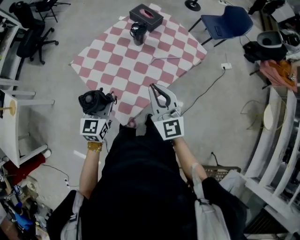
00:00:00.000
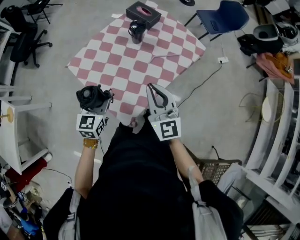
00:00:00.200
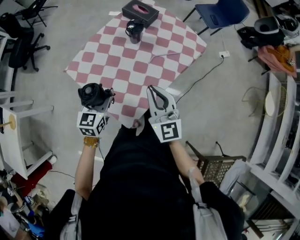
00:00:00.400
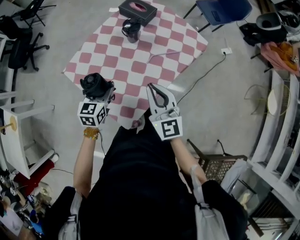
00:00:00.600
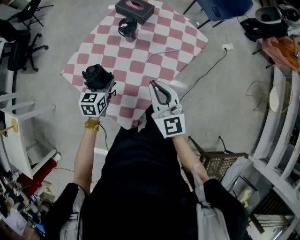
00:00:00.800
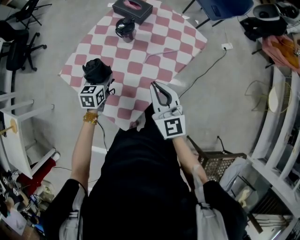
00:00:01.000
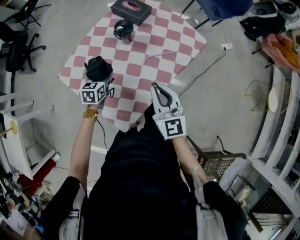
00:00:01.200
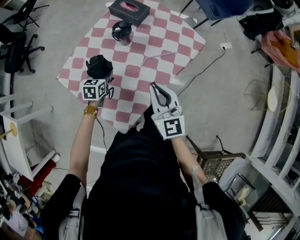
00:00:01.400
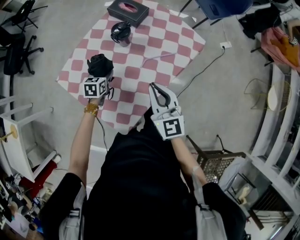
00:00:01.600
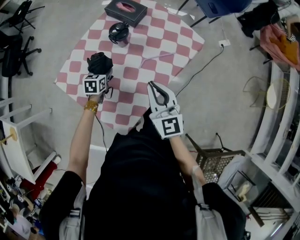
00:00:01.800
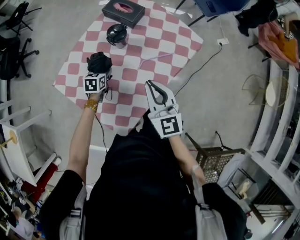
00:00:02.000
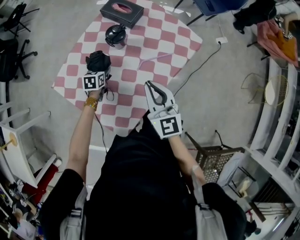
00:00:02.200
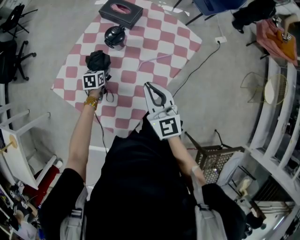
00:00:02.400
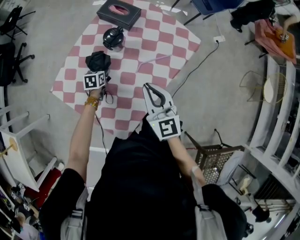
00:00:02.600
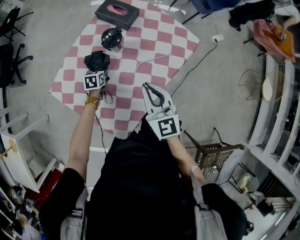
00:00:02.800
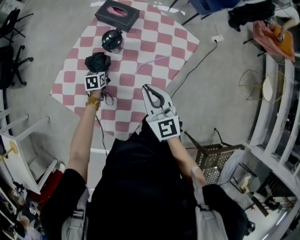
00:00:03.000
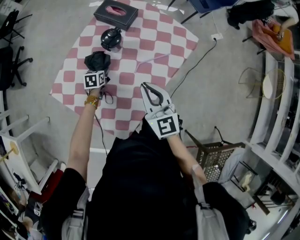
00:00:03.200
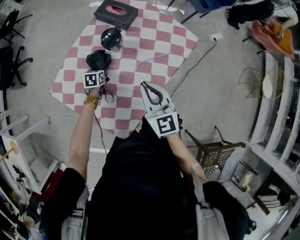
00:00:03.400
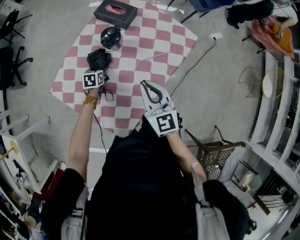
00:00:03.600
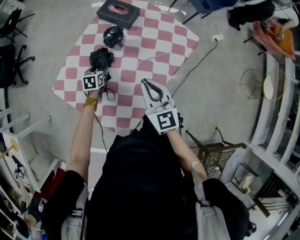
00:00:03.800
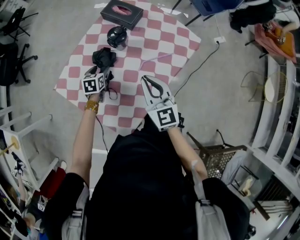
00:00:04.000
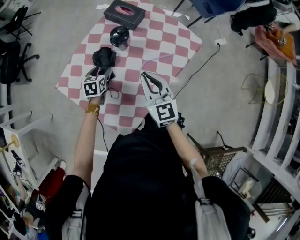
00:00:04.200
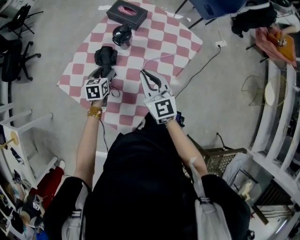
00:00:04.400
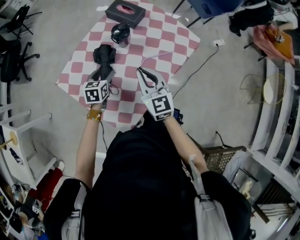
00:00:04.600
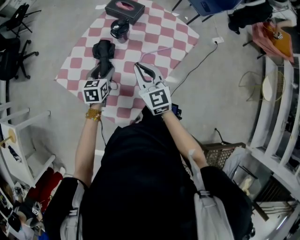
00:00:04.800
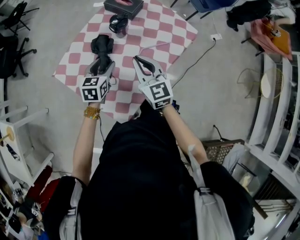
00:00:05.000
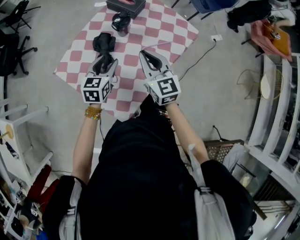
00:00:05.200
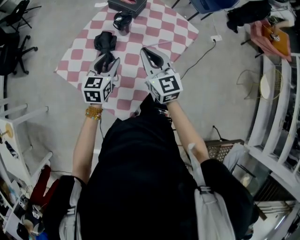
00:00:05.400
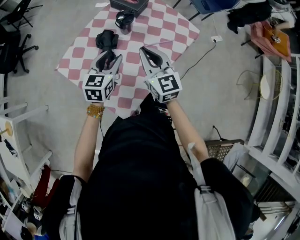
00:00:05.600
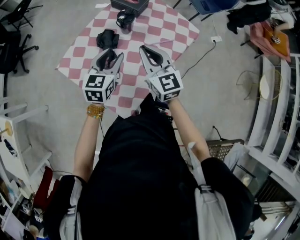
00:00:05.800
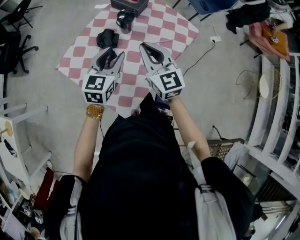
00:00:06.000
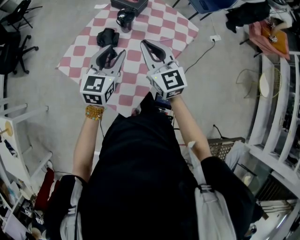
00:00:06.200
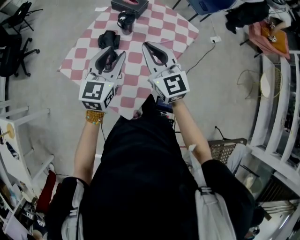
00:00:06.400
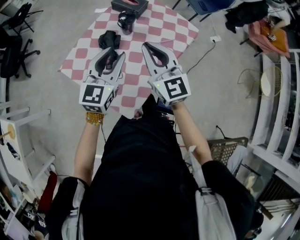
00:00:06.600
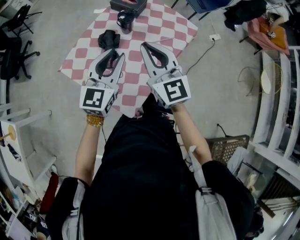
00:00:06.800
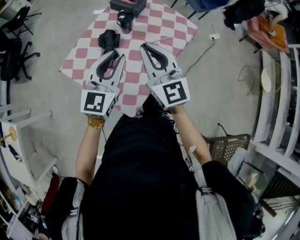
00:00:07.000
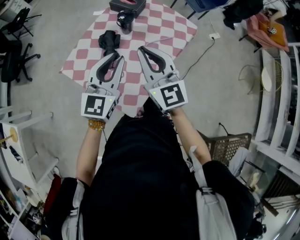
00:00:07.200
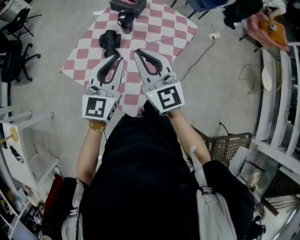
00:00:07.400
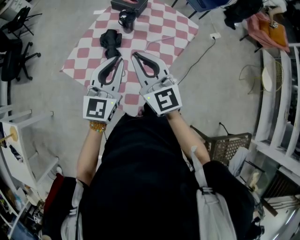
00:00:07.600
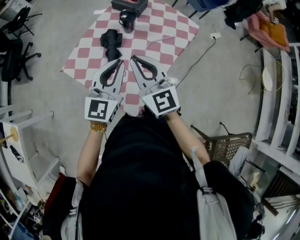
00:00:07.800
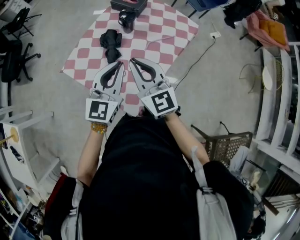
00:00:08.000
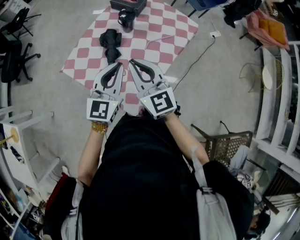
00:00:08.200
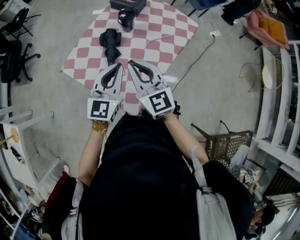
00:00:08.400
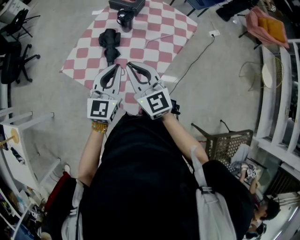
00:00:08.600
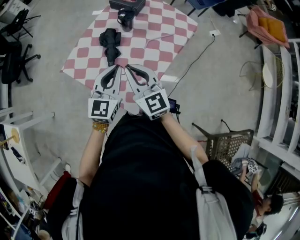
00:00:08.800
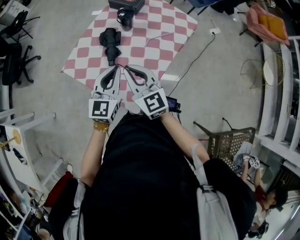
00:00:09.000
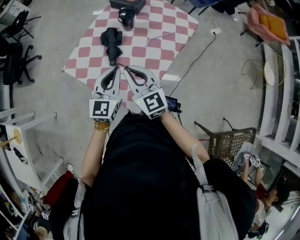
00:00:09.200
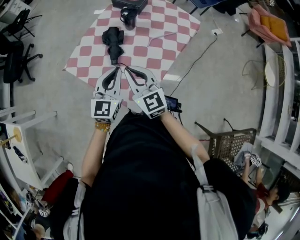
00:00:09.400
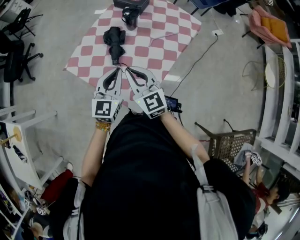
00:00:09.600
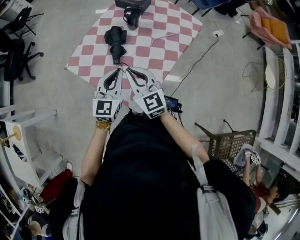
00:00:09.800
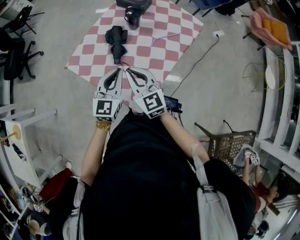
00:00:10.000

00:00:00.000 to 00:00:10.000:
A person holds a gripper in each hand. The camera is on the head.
00:00:00.000 to 00:00:01.400: The left gripper heads forward and downward, covering approximately 30 cm, and swivels approximately 30 degrees. The right gripper shifts approximately 10 cm forward and downward.
00:00:01.400 to 00:00:02.800: The left gripper travels downward and forward by approximately 15 cm. Meanwhile the right gripper goes roughly 5 cm forward.
00:00:02.800 to 00:00:04.200: The left gripper is displaced upward by about 10 cm.
00:00:04.200 to 00:00:05.800: The left gripper heads upward and backward, covering about 20 cm, and rotates roughly 30 degrees. Meanwhile the right gripper heads upward, covering approximately 5 cm.
00:00:05.800 to 00:00:07.200: The grippers both shift upward and backward by roughly 10 cm. The left gripper closes up.
00:00:07.200 to 00:00:08.600: Both grippers travel together downward, roughly 5 cm.
00:00:08.600 to 00:00:10.000: Both grippers move downward, some 5 cm.

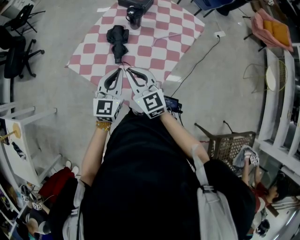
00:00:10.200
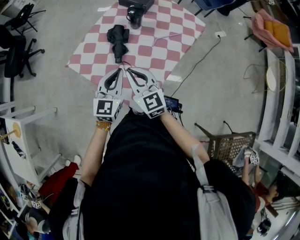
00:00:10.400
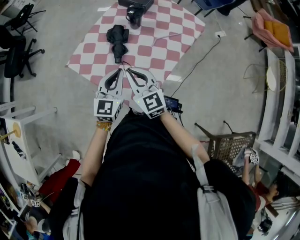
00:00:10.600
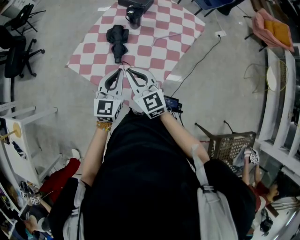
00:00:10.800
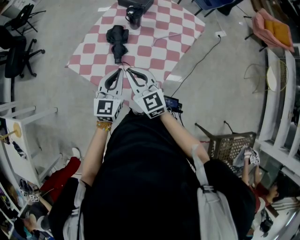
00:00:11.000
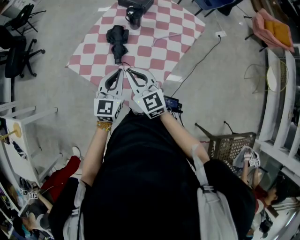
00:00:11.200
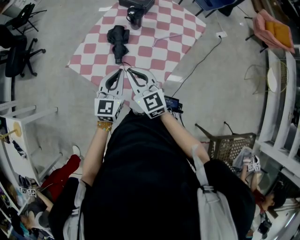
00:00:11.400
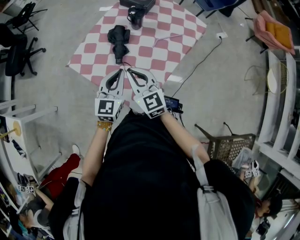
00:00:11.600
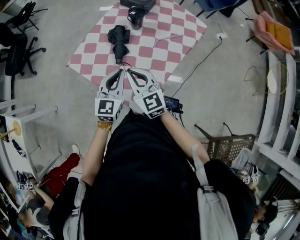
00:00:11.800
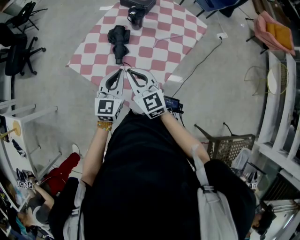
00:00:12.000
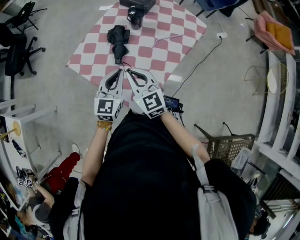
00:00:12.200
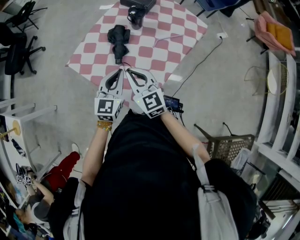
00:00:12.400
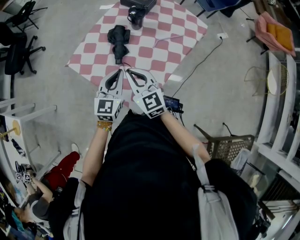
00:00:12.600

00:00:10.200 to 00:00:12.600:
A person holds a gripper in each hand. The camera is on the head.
00:00:10.200 to 00:00:11.400: Both grippers stay put.
00:00:11.400 to 00:00:12.600: The grippers stay close to where they were, moving slightly.

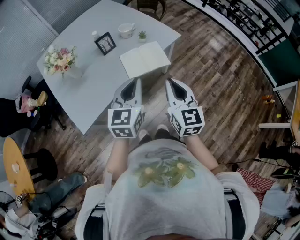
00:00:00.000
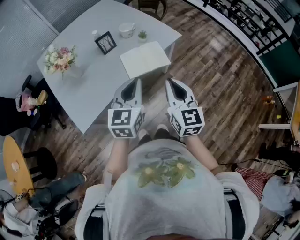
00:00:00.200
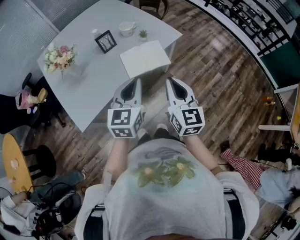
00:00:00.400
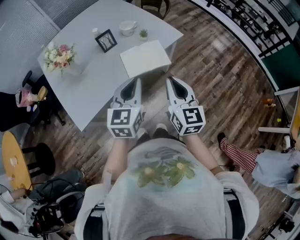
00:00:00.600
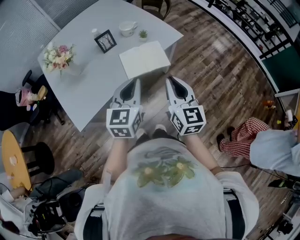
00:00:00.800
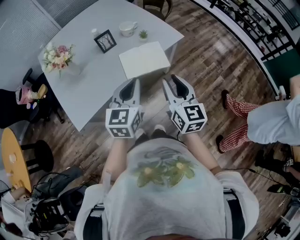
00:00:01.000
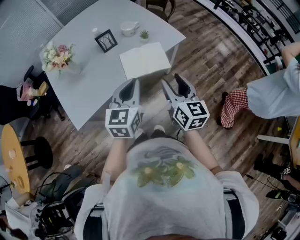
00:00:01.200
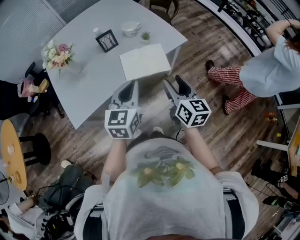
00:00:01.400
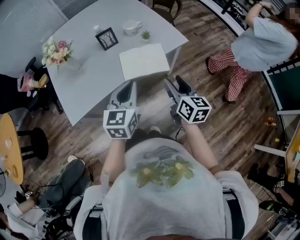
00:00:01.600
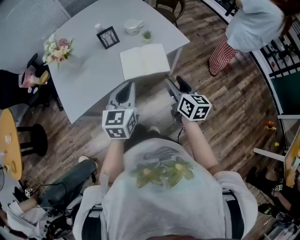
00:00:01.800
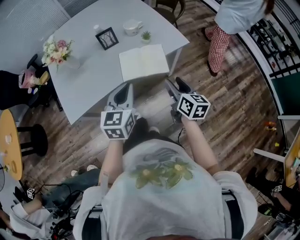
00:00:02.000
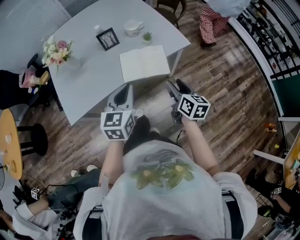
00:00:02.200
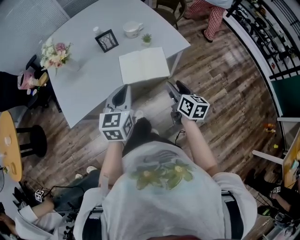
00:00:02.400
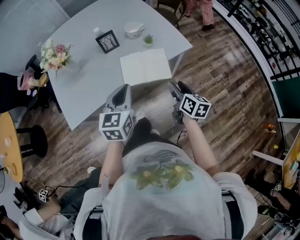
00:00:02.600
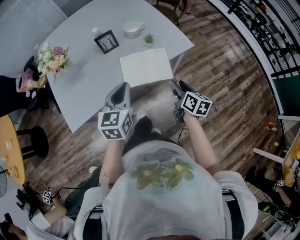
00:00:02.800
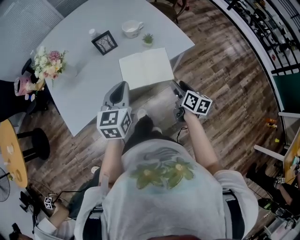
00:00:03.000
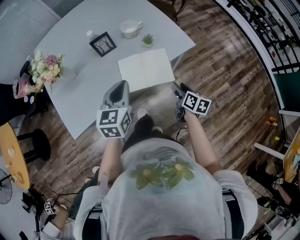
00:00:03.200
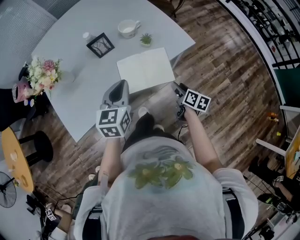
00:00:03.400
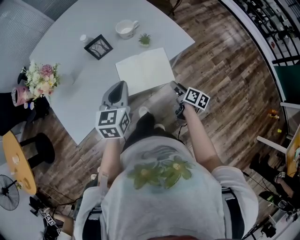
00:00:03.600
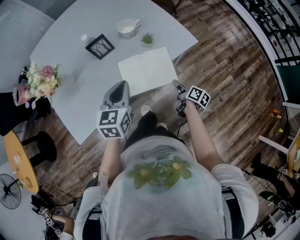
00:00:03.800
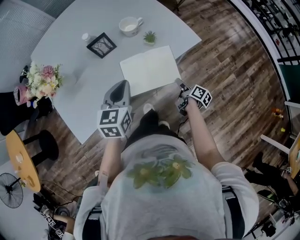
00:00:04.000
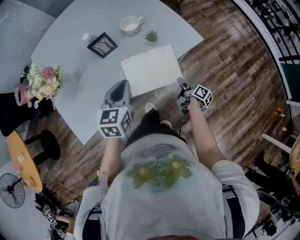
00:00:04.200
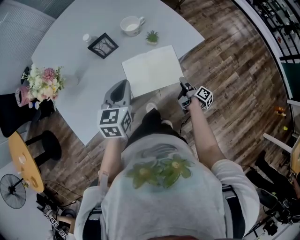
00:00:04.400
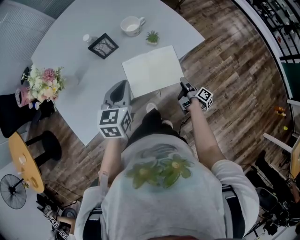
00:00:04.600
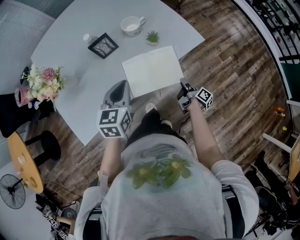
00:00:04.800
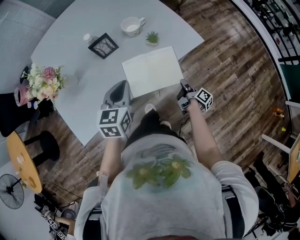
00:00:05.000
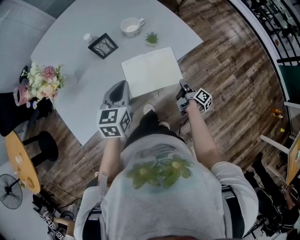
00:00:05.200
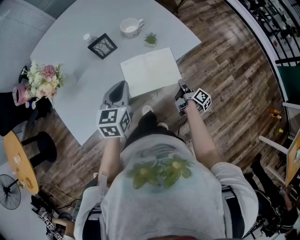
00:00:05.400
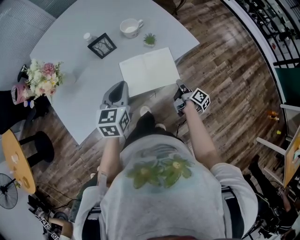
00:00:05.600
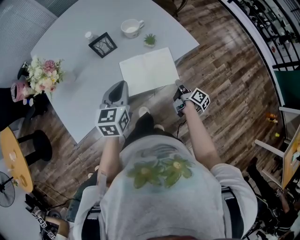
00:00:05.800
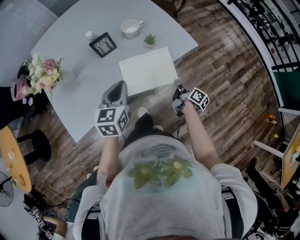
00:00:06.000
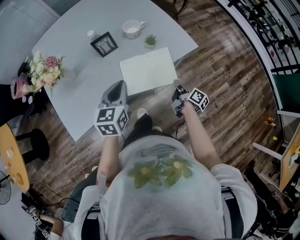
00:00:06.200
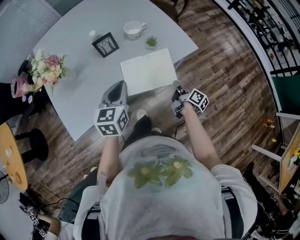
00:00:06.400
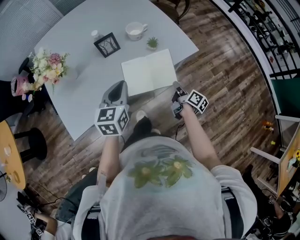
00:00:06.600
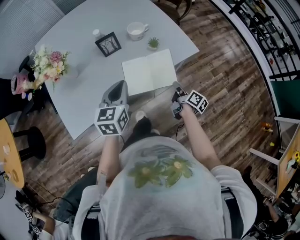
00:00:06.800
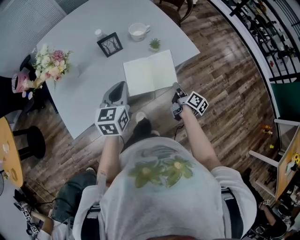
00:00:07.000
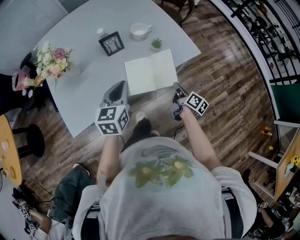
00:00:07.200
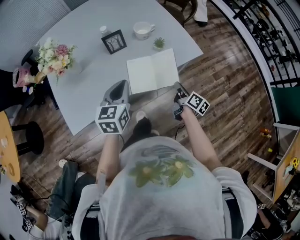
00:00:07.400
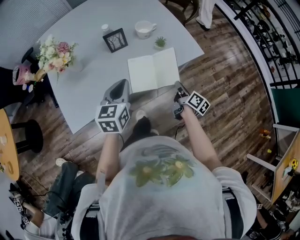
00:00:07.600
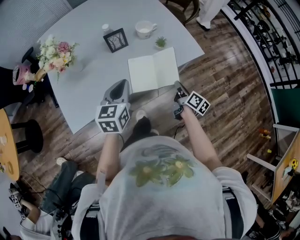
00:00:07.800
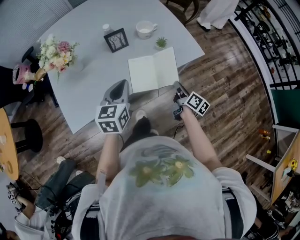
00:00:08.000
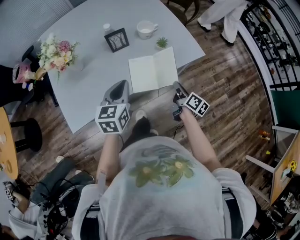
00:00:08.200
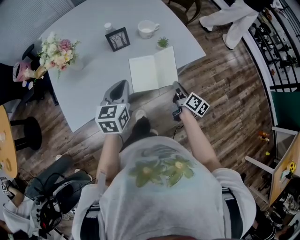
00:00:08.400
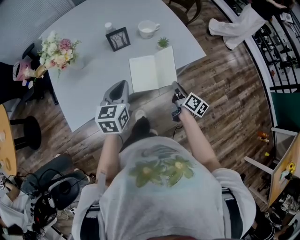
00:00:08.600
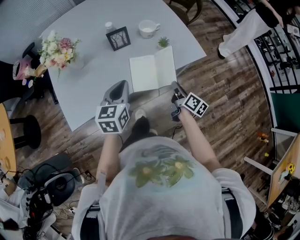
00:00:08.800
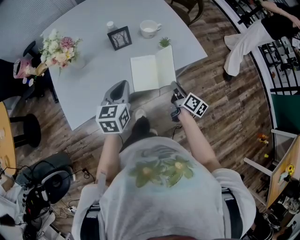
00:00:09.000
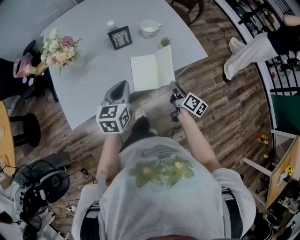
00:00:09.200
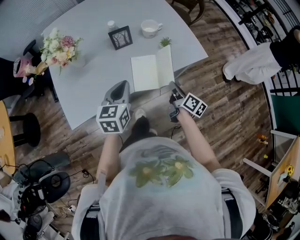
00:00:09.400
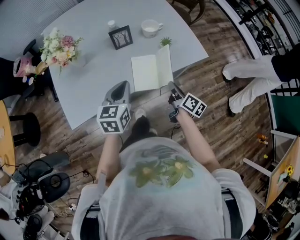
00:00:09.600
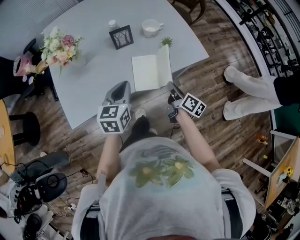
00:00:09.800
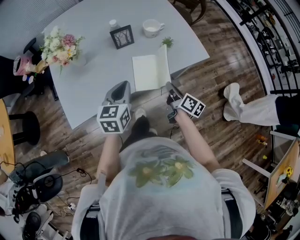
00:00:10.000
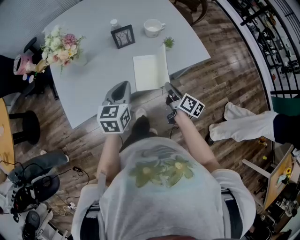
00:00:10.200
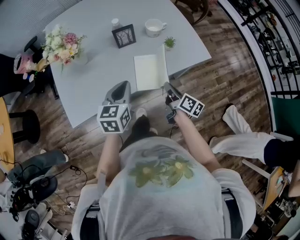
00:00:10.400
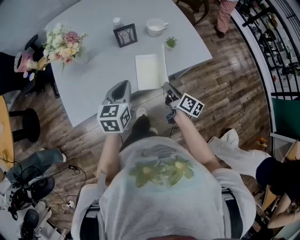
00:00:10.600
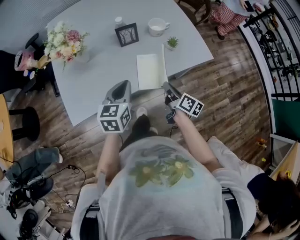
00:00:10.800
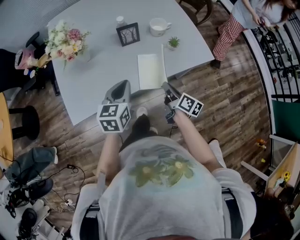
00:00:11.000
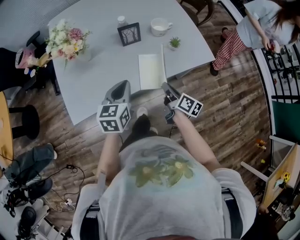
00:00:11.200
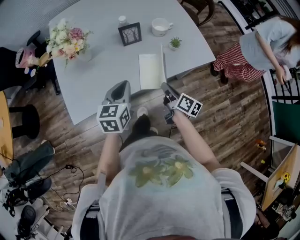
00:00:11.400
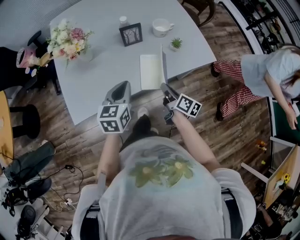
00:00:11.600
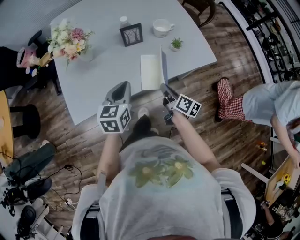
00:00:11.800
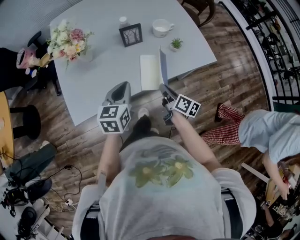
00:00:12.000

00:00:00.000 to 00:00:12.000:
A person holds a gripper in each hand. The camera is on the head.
00:00:00.000 to 00:00:01.600: The left gripper moves about 5 cm; the right gripper is displaced forward, to the right and downward by some 15 cm, turns by roughly 30 degrees, and opens up.
00:00:01.600 to 00:00:03.000: The left gripper shifts approximately 10 cm forward. The right gripper shifts some 15 cm downward and forward, and rotates about 20 degrees.
00:00:03.000 to 00:00:04.400: The right gripper is displaced downward by approximately 15 cm, and rolls clockwise, seen from behind, by roughly 50 degrees. The left gripper goes approximately 5 cm forward.
00:00:04.400 to 00:00:06.000: The right gripper is displaced upward by about 10 cm, and closes its fingers.
00:00:06.000 to 00:00:07.600: The right gripper is displaced upward by roughly 5 cm.
00:00:07.600 to 00:00:09.000: The grippers stay close to where they were, moving slightly.
00:00:09.000 to 00:00:10.400: The right gripper shifts roughly 5 cm to the left.
00:00:10.400 to 00:00:12.000: The right gripper travels to the left by some 5 cm.
